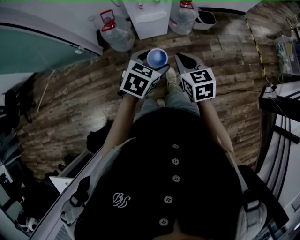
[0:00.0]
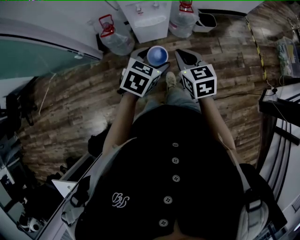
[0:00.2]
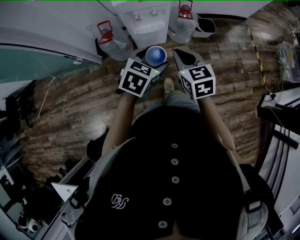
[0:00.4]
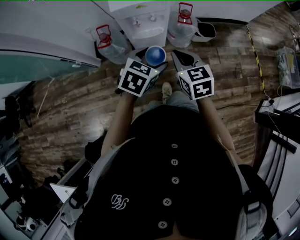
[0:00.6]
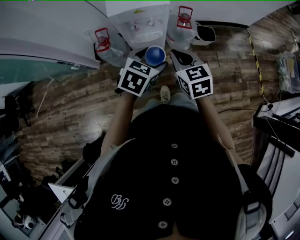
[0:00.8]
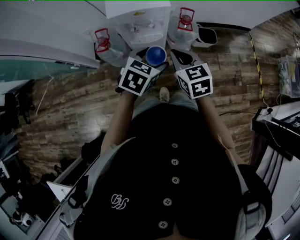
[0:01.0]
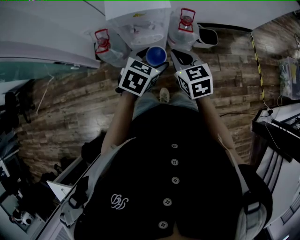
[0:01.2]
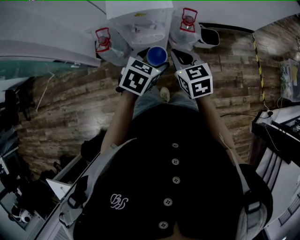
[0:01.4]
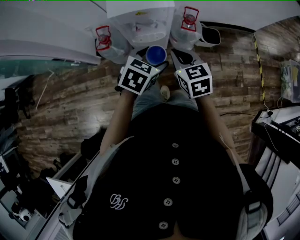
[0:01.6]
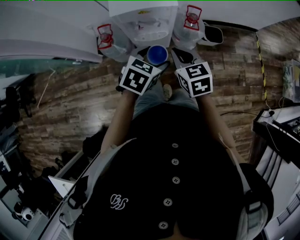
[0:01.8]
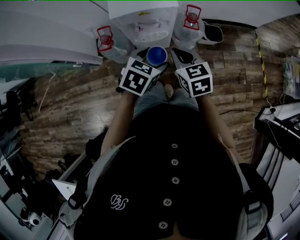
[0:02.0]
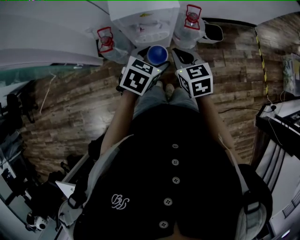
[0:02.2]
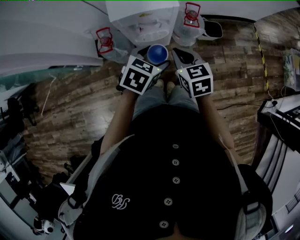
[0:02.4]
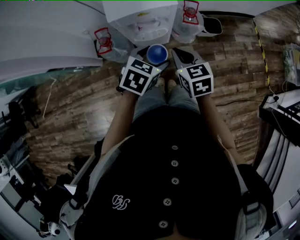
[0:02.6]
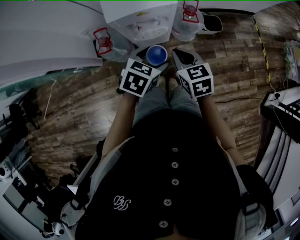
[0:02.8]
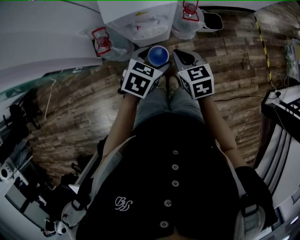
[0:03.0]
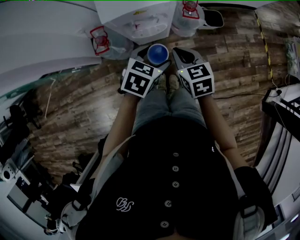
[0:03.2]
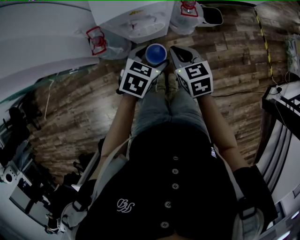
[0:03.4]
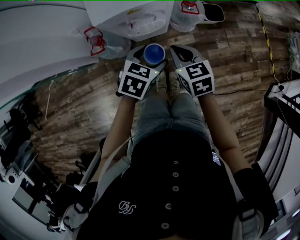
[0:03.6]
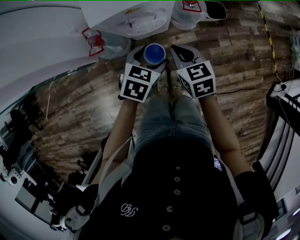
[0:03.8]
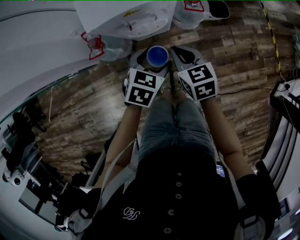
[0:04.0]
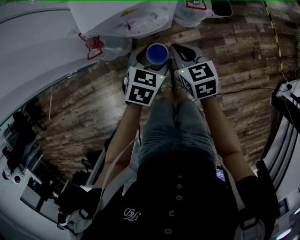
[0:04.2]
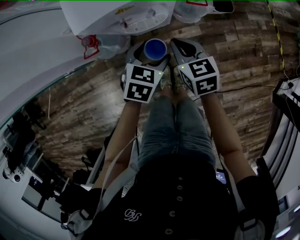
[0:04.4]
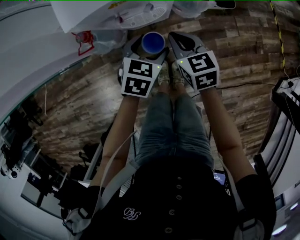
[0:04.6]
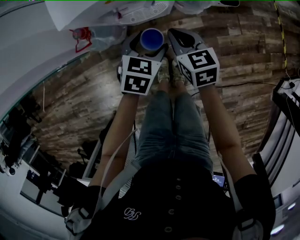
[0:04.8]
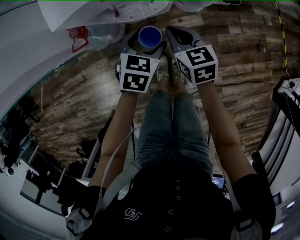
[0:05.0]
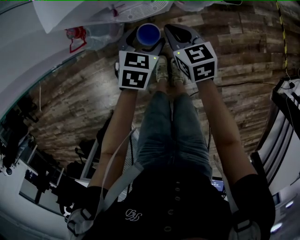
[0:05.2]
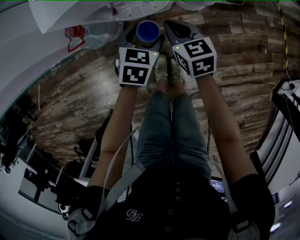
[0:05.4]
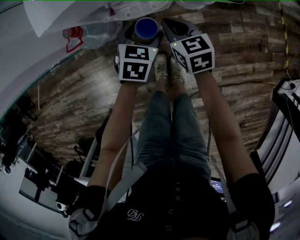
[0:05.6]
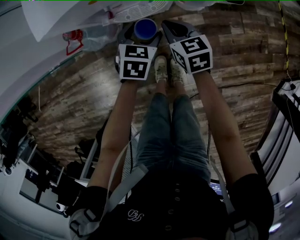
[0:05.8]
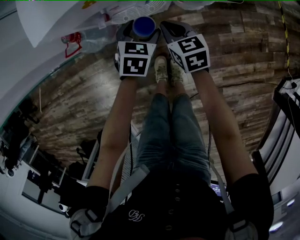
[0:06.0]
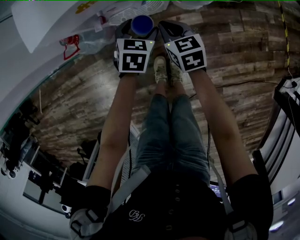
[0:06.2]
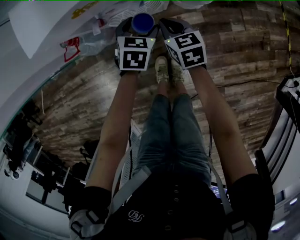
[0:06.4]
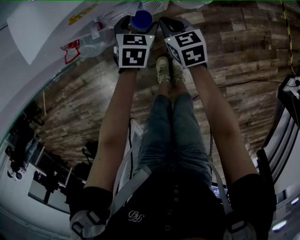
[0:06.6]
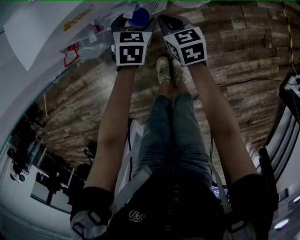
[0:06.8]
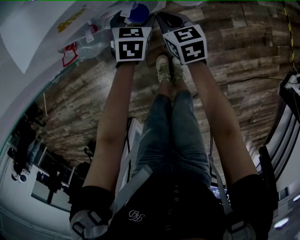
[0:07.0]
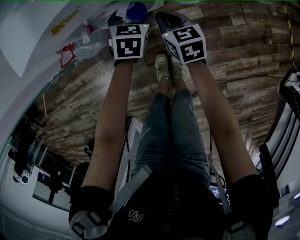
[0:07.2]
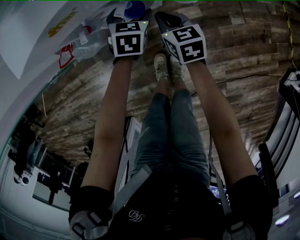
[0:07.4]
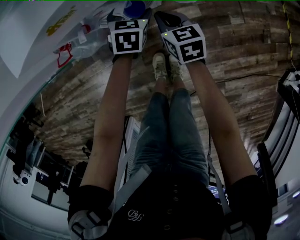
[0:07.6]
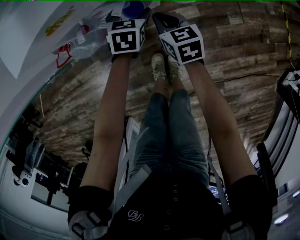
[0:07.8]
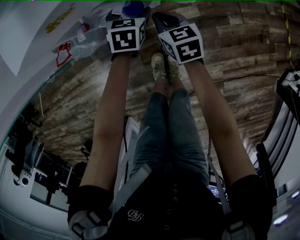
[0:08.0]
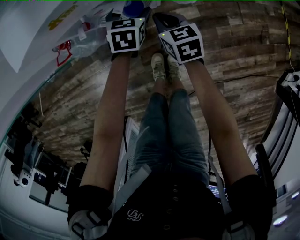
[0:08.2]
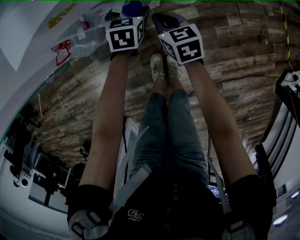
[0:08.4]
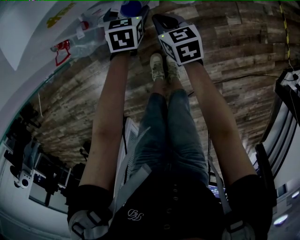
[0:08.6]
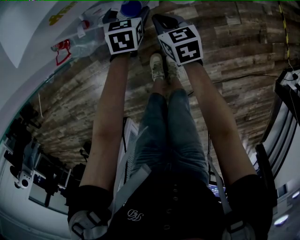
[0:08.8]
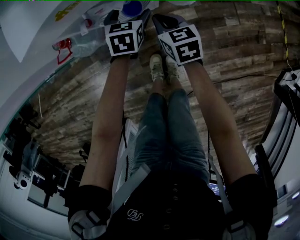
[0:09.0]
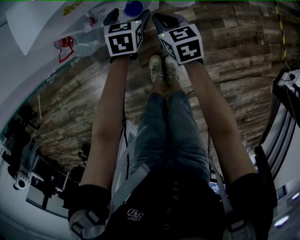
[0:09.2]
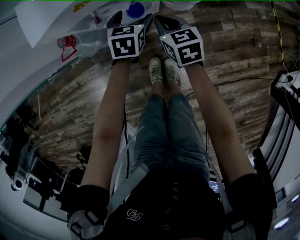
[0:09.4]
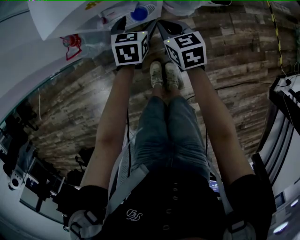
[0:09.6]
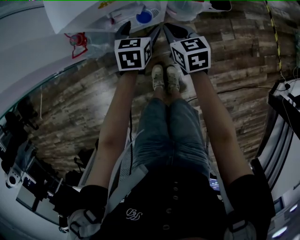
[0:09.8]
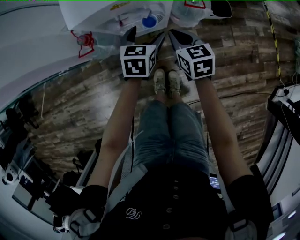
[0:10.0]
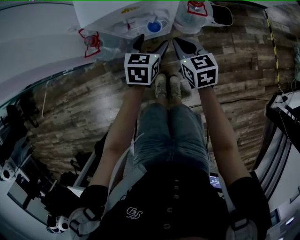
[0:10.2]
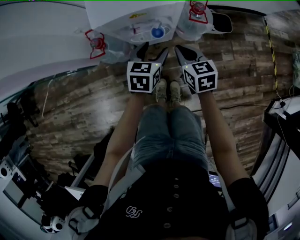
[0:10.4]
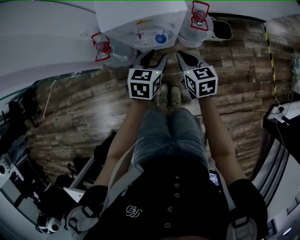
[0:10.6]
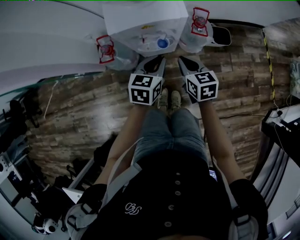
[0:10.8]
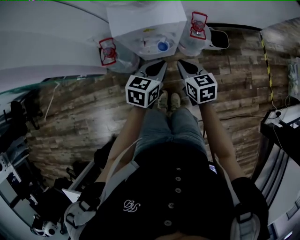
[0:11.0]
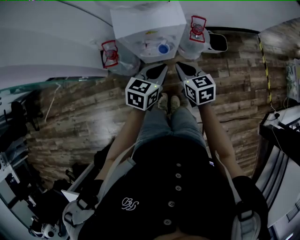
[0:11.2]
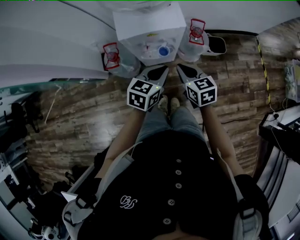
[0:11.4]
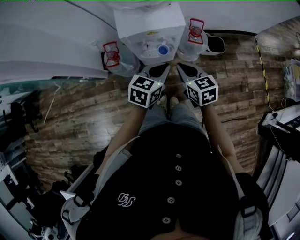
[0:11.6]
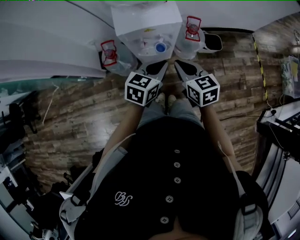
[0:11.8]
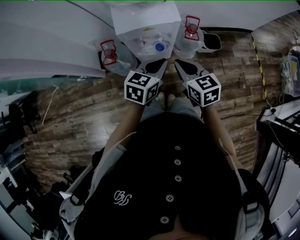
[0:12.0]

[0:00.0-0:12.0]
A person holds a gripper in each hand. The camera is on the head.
0:00.0 to 0:01.6: The two grippers go some 25 cm forward.
0:01.6 to 0:03.0: The grippers move only a little.
0:03.0 to 0:04.4: Both grippers travel together downward and forward, about 15 cm.
0:04.4 to 0:06.0: The right gripper travels downward by approximately 15 cm. The left gripper goes approximately 15 cm downward and forward.
0:06.0 to 0:07.6: The right gripper shifts by approximately 5 cm. The left gripper shifts roughly 5 cm forward.
0:07.6 to 0:09.0: The grippers stay close to where they were, moving slightly.
0:09.0 to 0:10.4: The right gripper moves upward, some 15 cm; the left gripper heads upward and backward, covering roughly 20 cm.
0:10.4 to 0:12.0: The left gripper is displaced upward and backward by roughly 15 cm, and closes its fingers. The right gripper travels upward by roughly 15 cm.

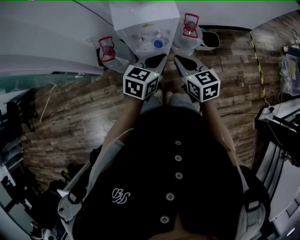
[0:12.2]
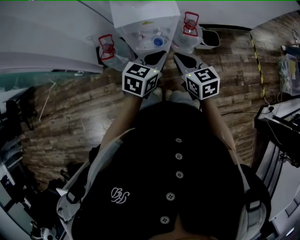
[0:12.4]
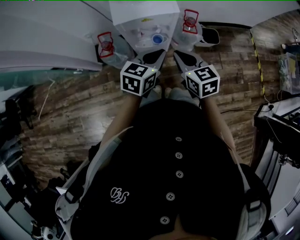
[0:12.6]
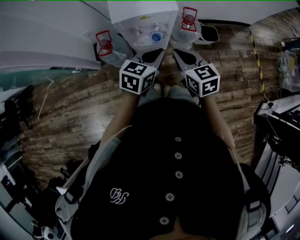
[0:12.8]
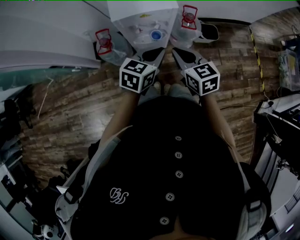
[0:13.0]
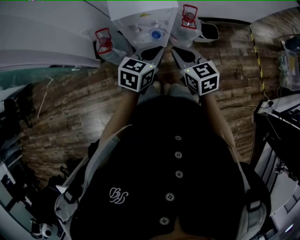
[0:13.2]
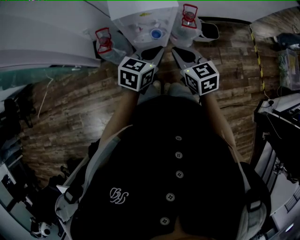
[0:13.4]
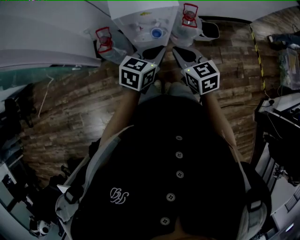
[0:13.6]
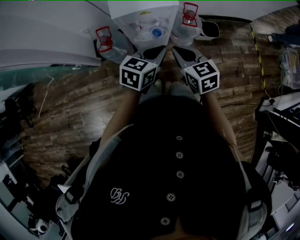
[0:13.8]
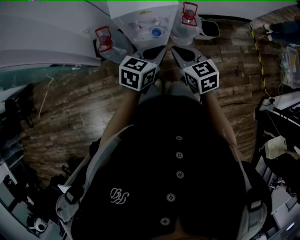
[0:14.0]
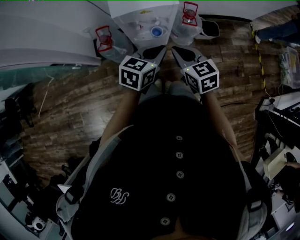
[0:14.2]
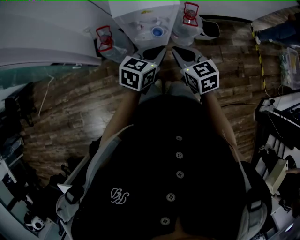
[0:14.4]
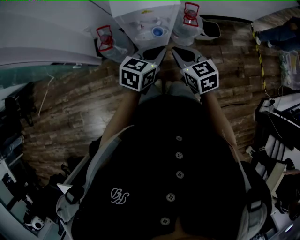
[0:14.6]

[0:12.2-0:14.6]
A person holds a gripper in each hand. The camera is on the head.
0:12.2 to 0:13.4: The grippers stay close to where they were, moving slightly.
0:13.4 to 0:14.6: Both grippers stay about where they are.

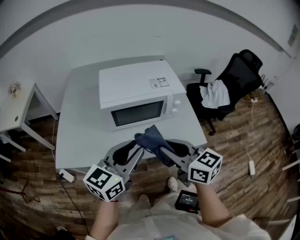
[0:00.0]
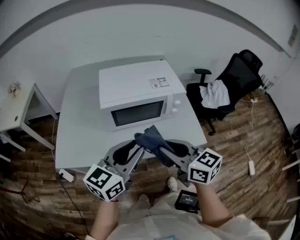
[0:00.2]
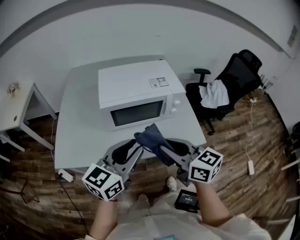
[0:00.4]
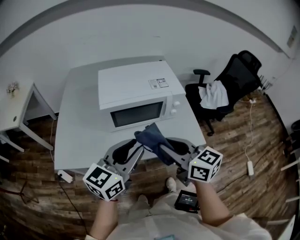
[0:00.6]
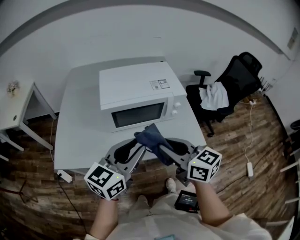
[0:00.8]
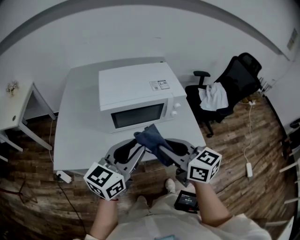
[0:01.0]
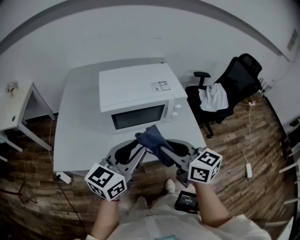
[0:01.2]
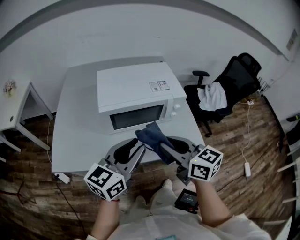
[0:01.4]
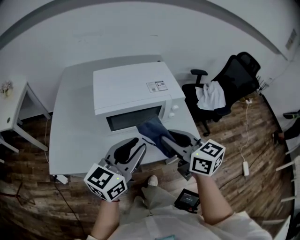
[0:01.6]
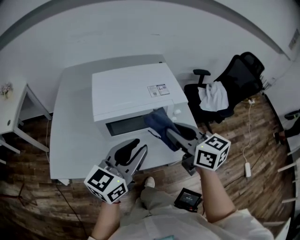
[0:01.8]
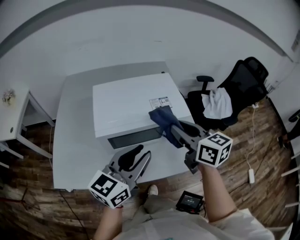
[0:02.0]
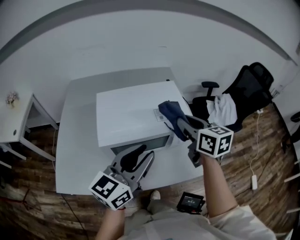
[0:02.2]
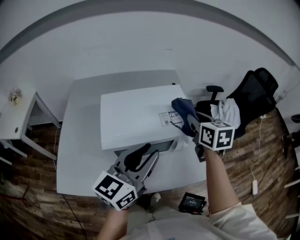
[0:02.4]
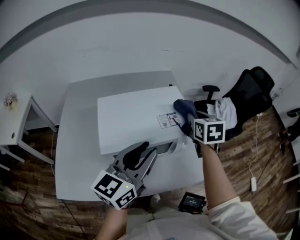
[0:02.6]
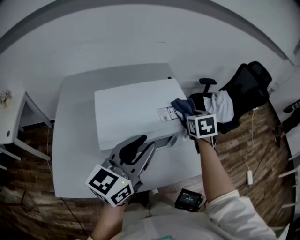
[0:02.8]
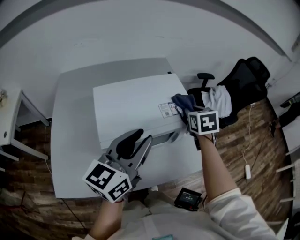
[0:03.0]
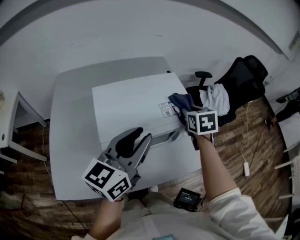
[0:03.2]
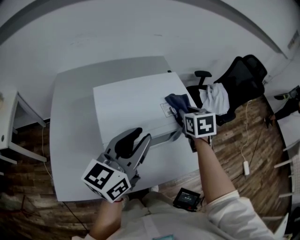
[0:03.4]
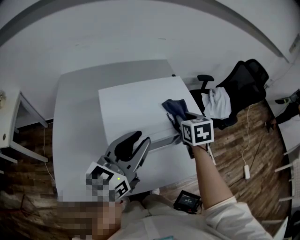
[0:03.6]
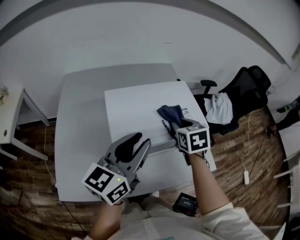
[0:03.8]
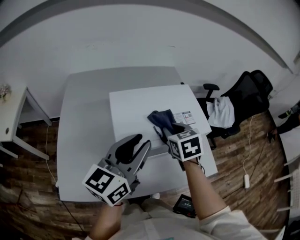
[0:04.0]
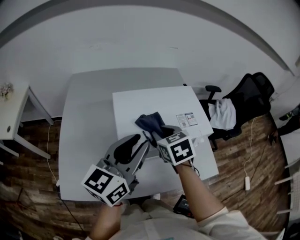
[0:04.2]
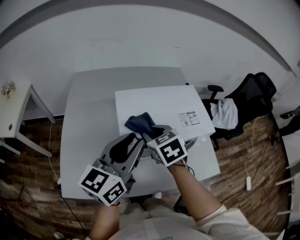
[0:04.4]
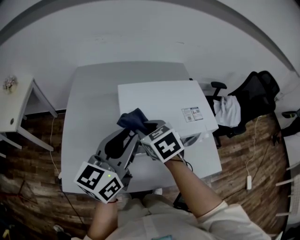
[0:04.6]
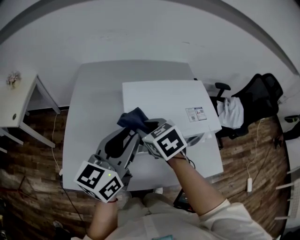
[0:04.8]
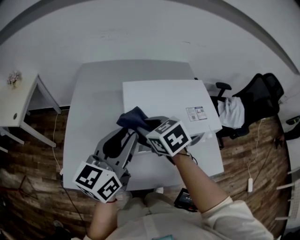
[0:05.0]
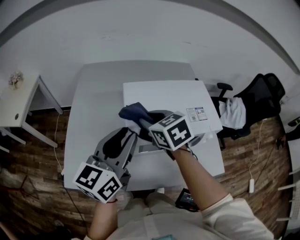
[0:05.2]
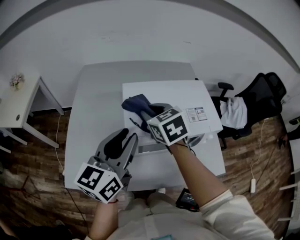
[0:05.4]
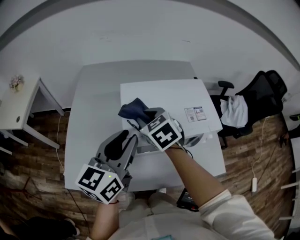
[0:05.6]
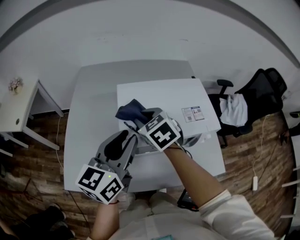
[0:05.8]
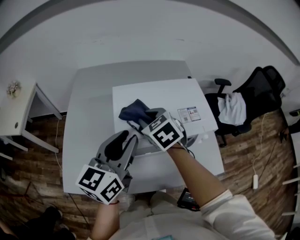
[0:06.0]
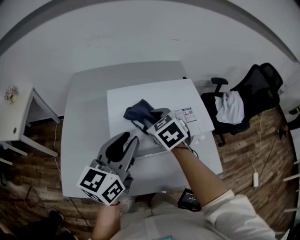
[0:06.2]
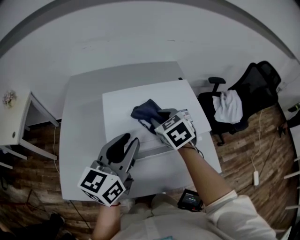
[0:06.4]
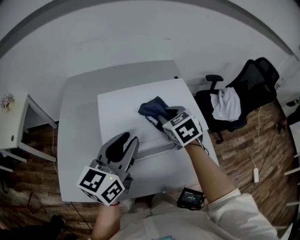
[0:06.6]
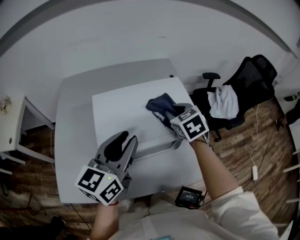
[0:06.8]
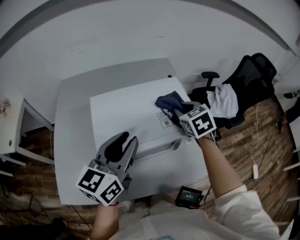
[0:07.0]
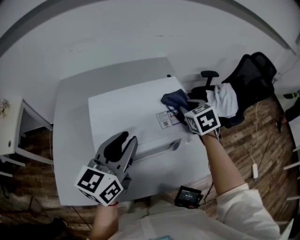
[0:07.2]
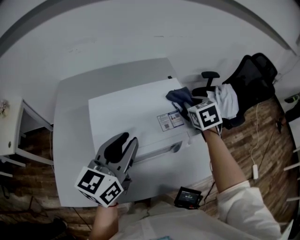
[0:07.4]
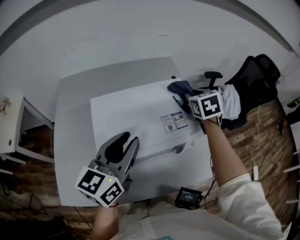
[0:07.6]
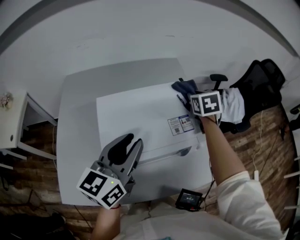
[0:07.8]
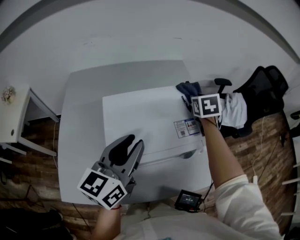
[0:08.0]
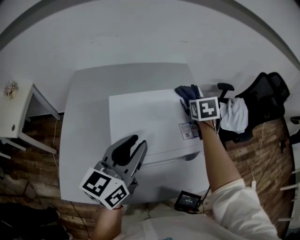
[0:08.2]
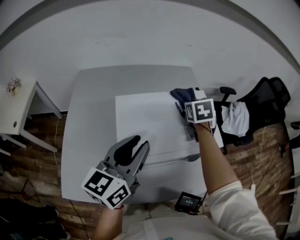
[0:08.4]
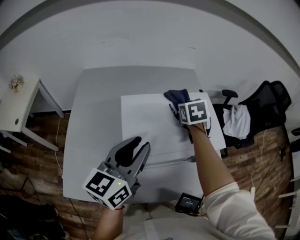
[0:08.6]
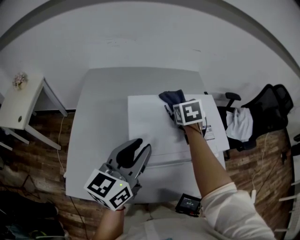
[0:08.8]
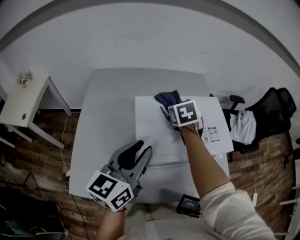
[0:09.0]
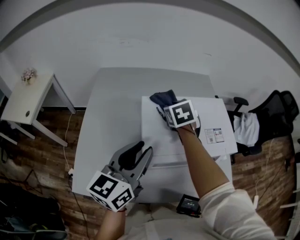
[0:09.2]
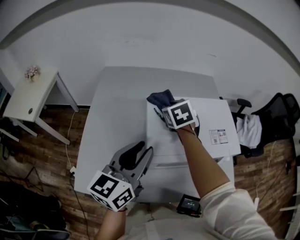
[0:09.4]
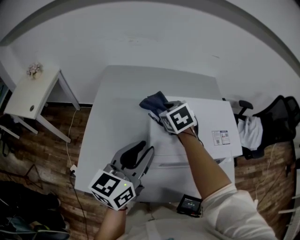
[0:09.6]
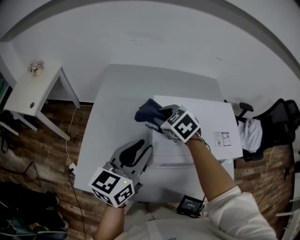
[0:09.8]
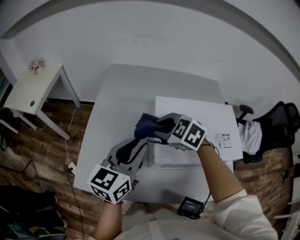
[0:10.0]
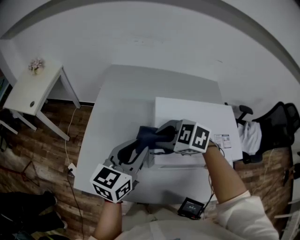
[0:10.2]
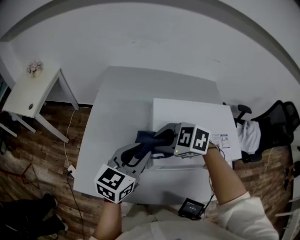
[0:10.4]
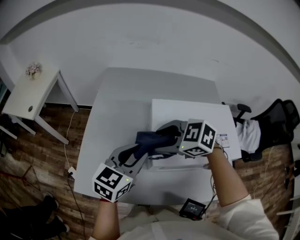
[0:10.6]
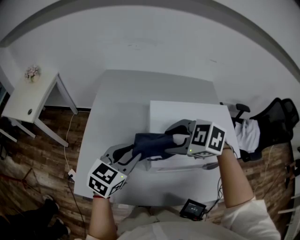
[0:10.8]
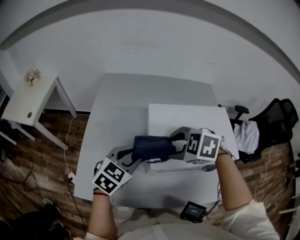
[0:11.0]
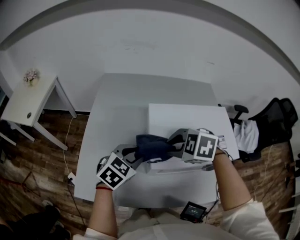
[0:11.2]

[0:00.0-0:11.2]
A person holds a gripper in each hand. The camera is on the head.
0:00.0 to 0:01.6: The right gripper travels forward by roughly 5 cm.
0:01.6 to 0:03.2: The left gripper is displaced forward and to the left by approximately 15 cm. The right gripper shifts some 30 cm forward, and swivels some 50 degrees.
0:03.2 to 0:04.8: The right gripper moves some 30 cm, and turns by about 40 degrees, while the left gripper moves approximately 15 cm.
0:04.8 to 0:06.4: The right gripper heads to the right and forward, covering some 15 cm, while the left gripper goes some 10 cm to the right.
0:06.4 to 0:08.0: The right gripper is displaced forward and to the right by some 25 cm, and rotates about 30 degrees.
0:08.0 to 0:09.6: The right gripper goes about 35 cm to the left, and swivels approximately 40 degrees. The left gripper goes about 15 cm to the left and backward.
0:09.6 to 0:11.2: The right gripper moves roughly 15 cm, turns by about 50 degrees, and opens and closes again, while the left gripper goes about 15 cm downward, and tips its fingers downward by approximately 30 degrees.
